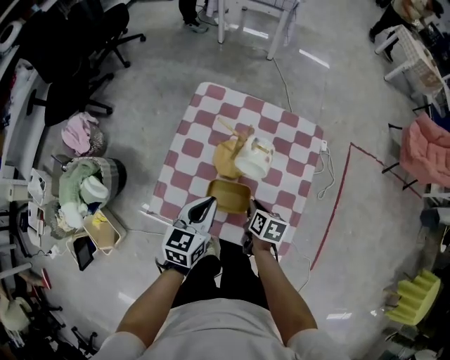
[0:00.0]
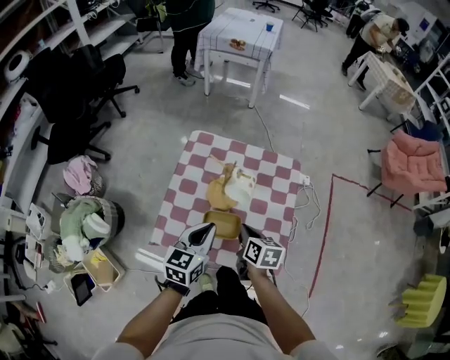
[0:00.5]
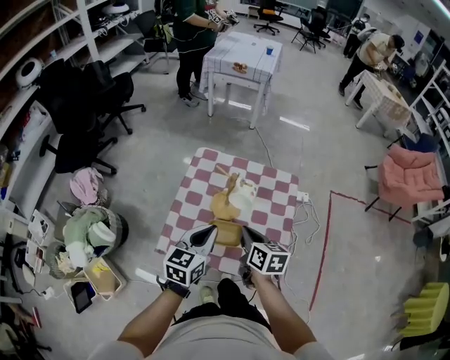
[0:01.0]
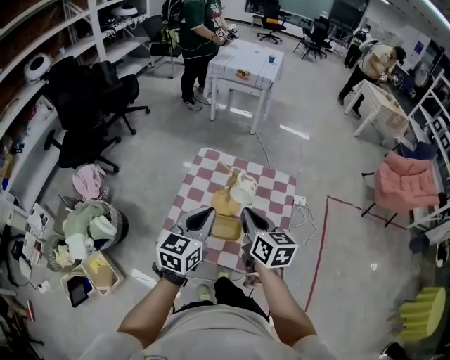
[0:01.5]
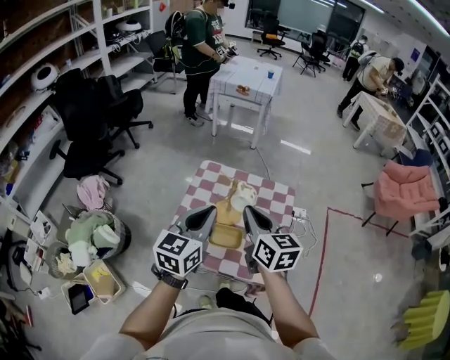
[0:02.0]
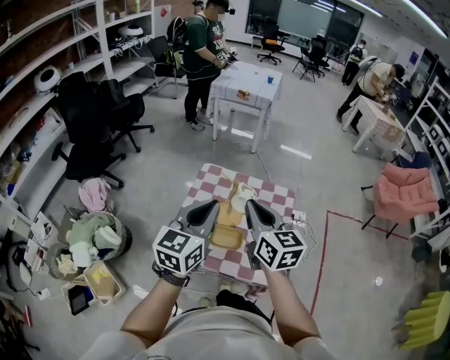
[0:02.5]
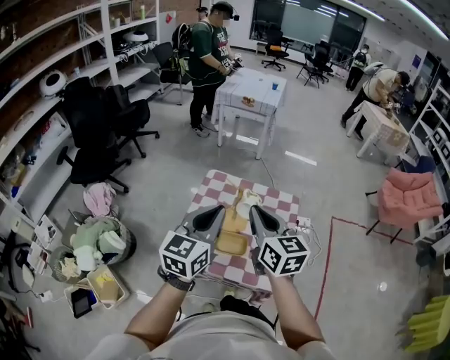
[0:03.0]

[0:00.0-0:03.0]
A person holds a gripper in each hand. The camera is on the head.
0:00.0 to 0:01.5: The left gripper shifts approximately 20 cm upward, while the right gripper shifts about 35 cm upward, and angles its fingers upward, by about 30 degrees.
0:01.5 to 0:03.0: The grippers both shift upward by roughly 10 cm.

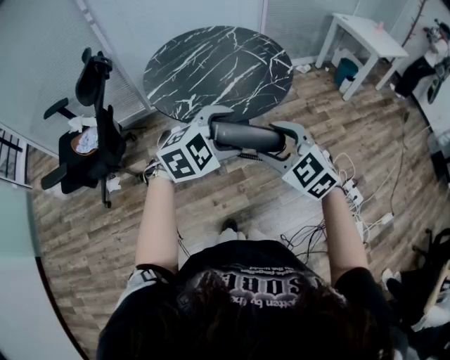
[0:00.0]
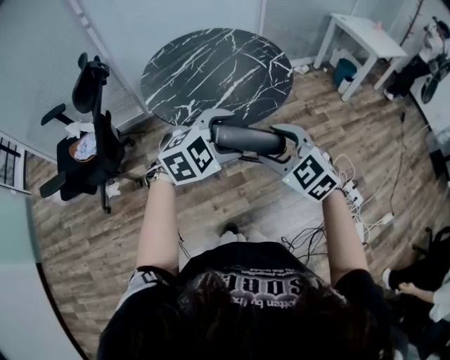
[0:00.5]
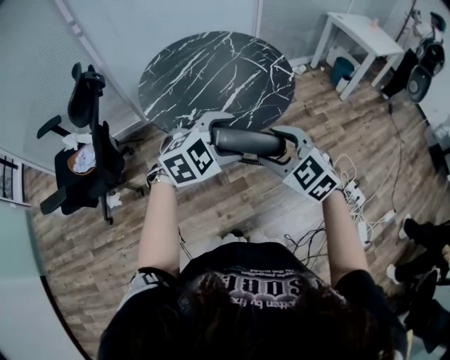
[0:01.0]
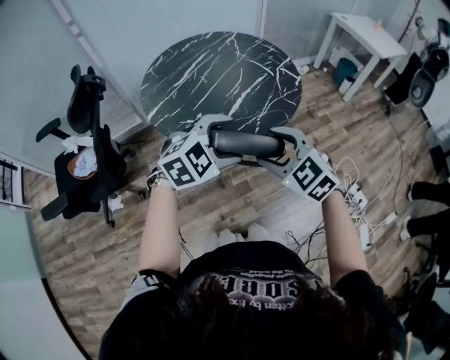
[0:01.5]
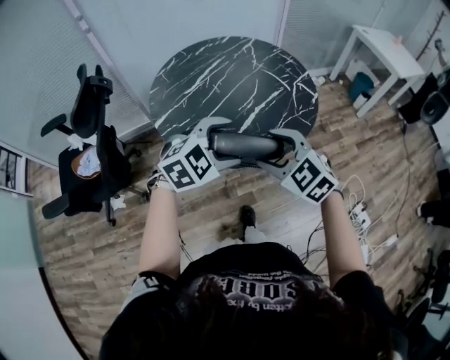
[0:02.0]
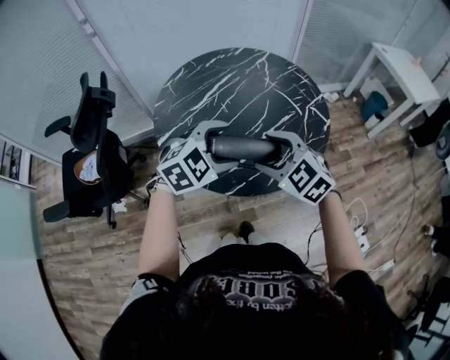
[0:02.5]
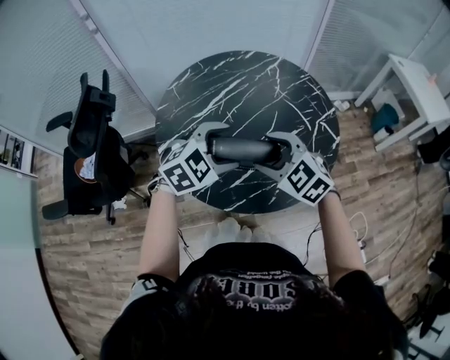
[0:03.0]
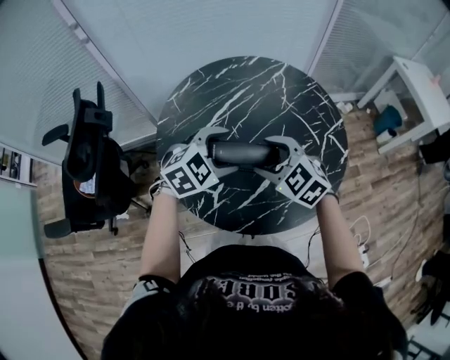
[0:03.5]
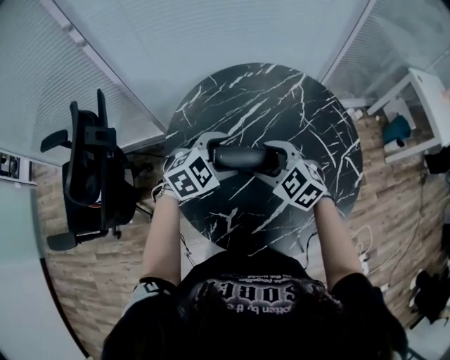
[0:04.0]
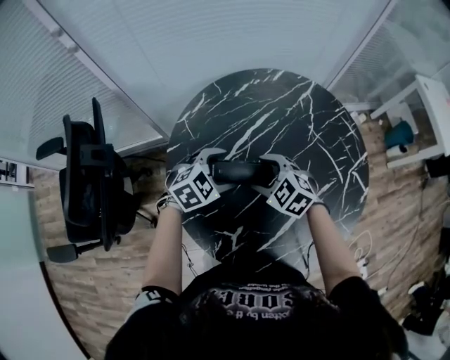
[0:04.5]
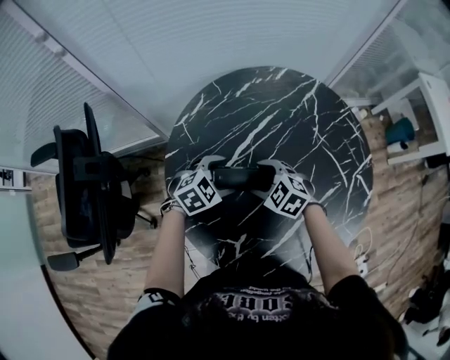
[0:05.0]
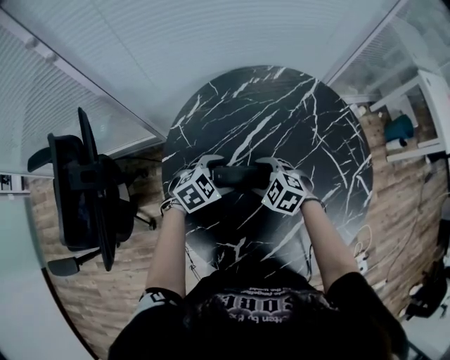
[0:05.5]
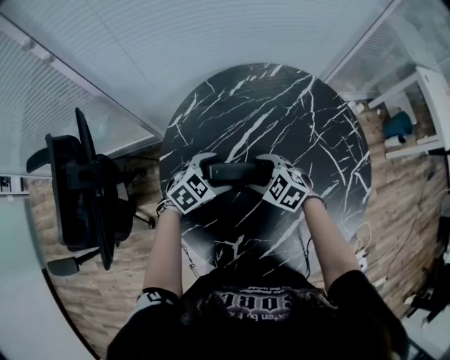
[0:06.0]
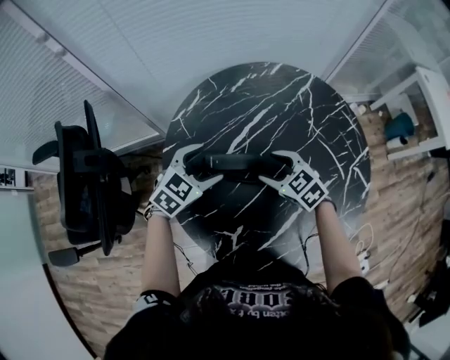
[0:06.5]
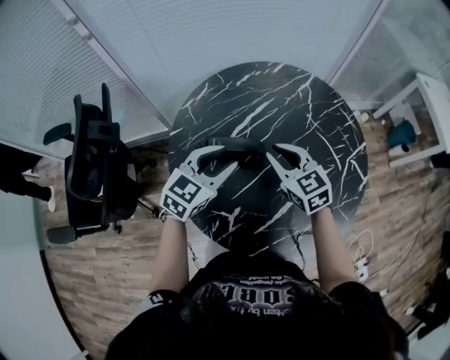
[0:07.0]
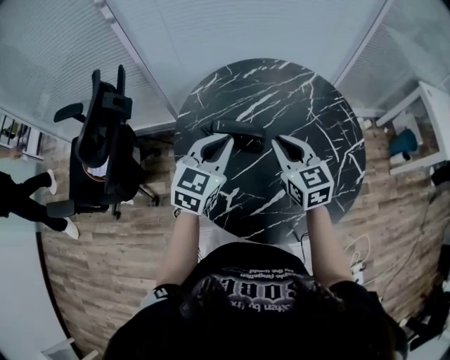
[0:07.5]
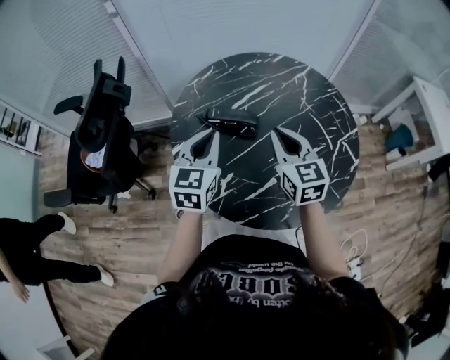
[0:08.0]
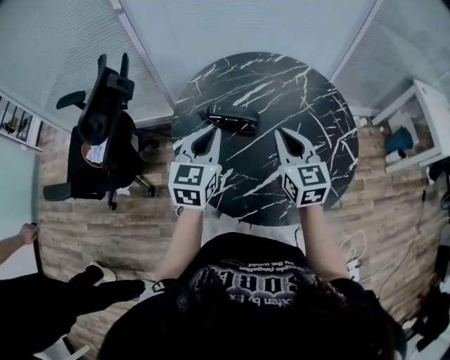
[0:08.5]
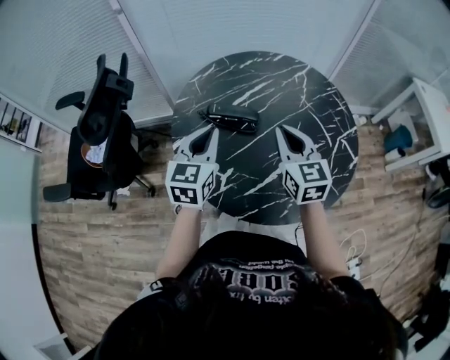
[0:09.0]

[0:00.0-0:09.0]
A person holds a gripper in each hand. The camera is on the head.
0:00.0 to 0:02.0: Both grippers move forward and to the left, about 20 cm.
0:02.0 to 0:04.5: The left gripper travels forward, downward and to the left by roughly 40 cm, and rotates roughly 20 degrees. Meanwhile the right gripper travels forward and downward by some 40 cm.
0:04.5 to 0:07.0: The grippers both shift upward by roughly 10 cm. The left gripper swivels some 30 degrees, and closes. The right gripper turns by roughly 30 degrees, and closes its fingers.
0:07.0 to 0:09.0: The left gripper heads backward, covering some 10 cm, changes its angle by approximately 30 degrees, and closes. The right gripper shifts about 10 cm backward and upward.

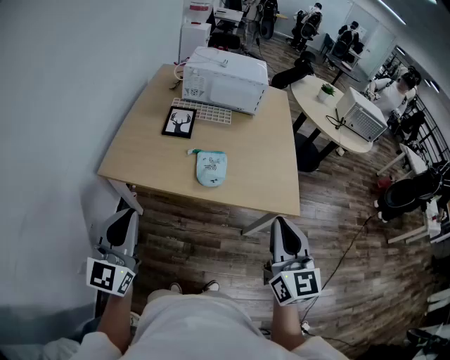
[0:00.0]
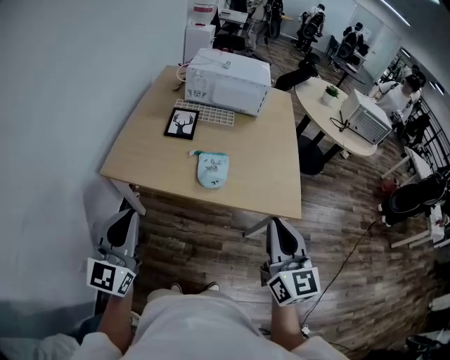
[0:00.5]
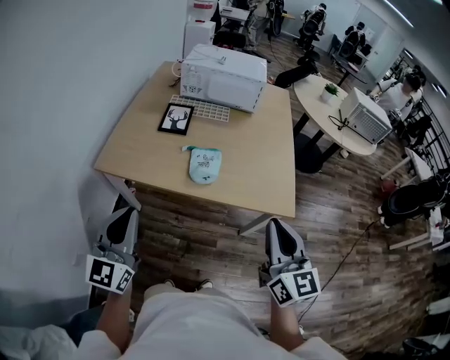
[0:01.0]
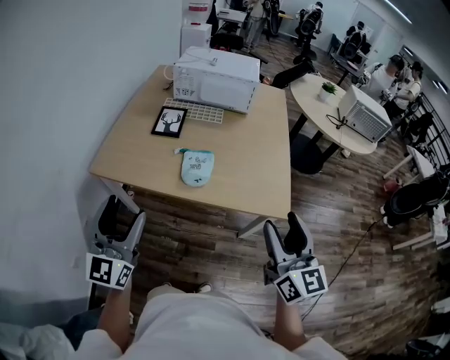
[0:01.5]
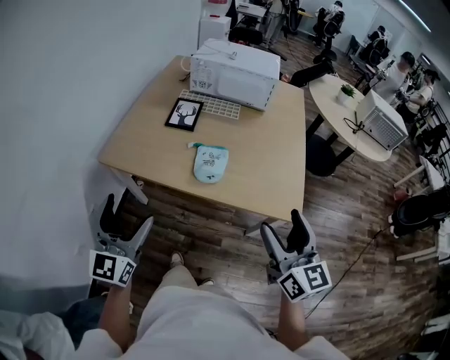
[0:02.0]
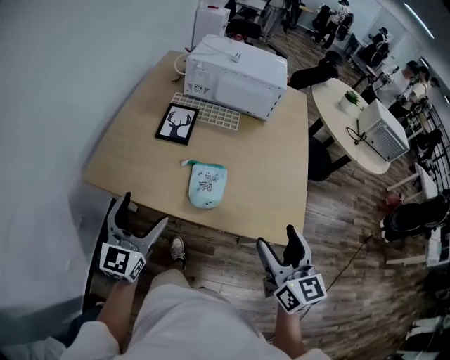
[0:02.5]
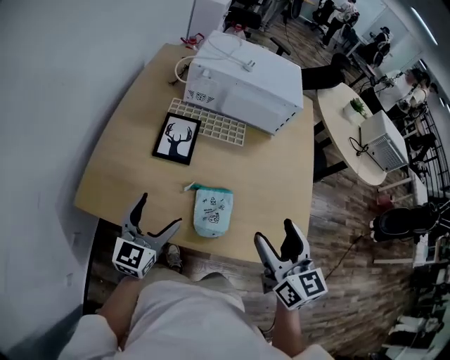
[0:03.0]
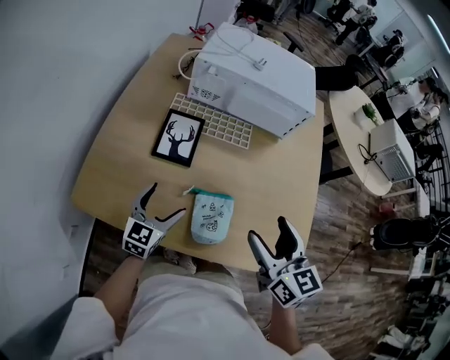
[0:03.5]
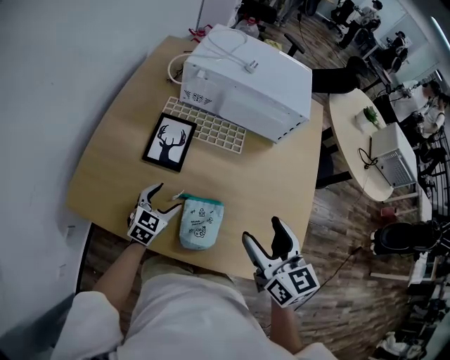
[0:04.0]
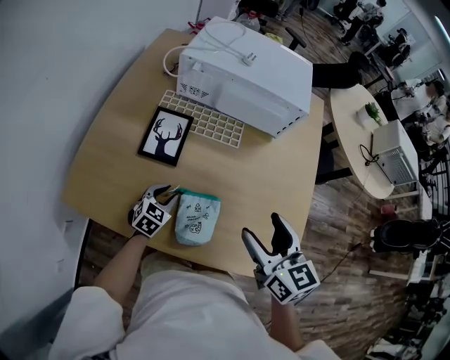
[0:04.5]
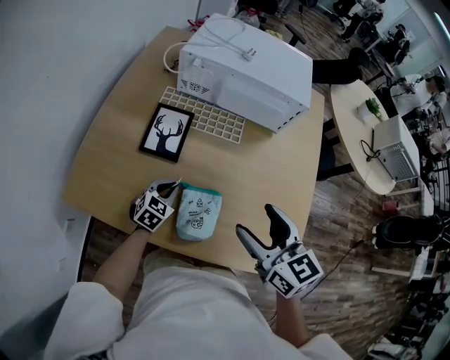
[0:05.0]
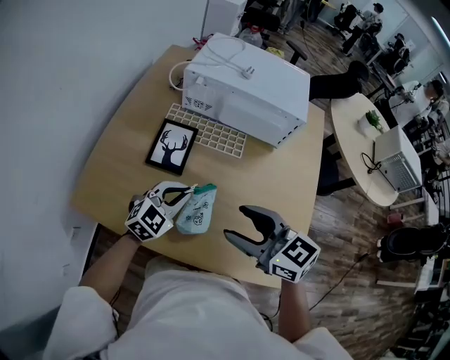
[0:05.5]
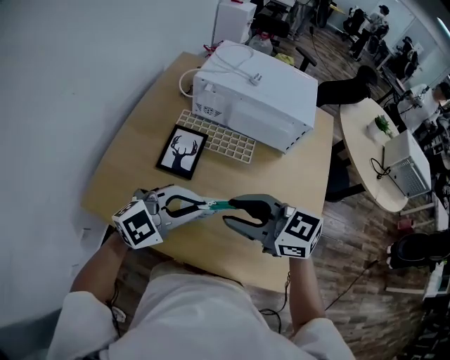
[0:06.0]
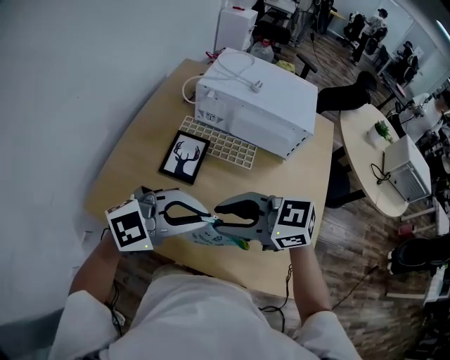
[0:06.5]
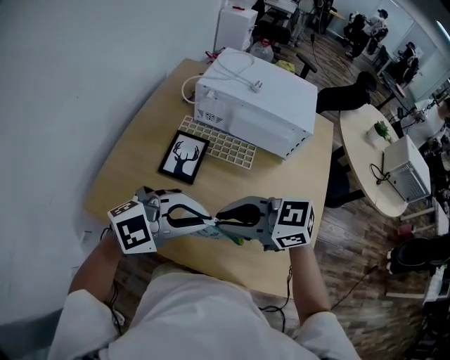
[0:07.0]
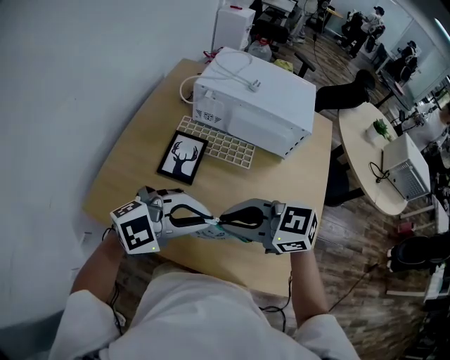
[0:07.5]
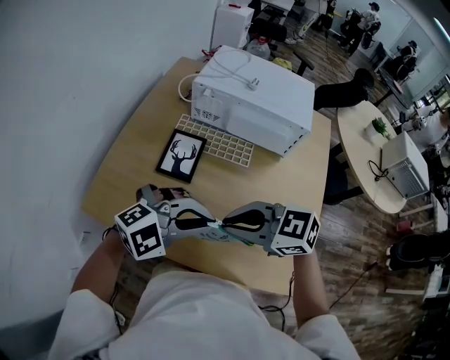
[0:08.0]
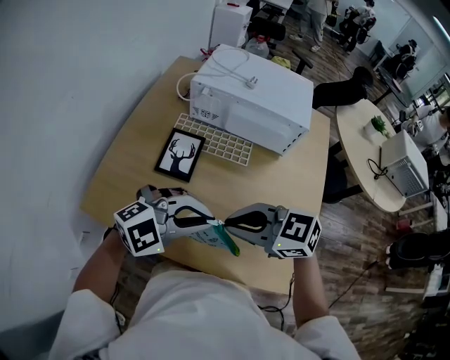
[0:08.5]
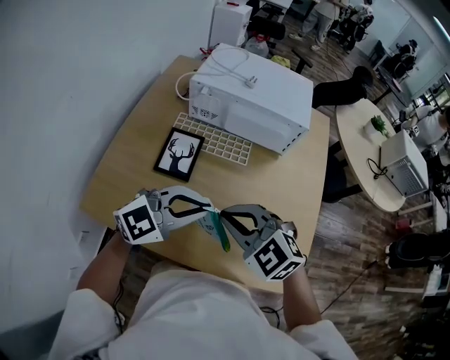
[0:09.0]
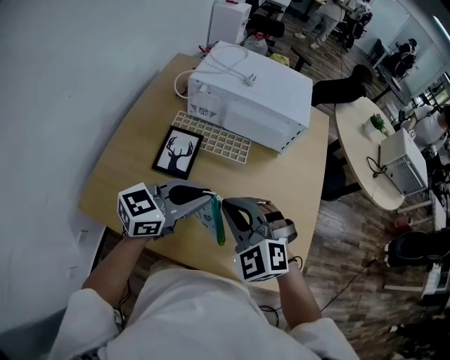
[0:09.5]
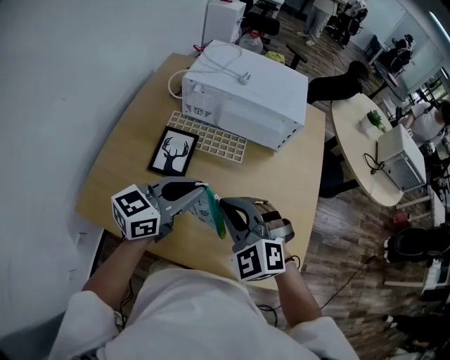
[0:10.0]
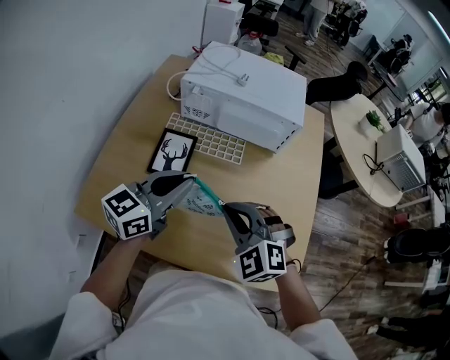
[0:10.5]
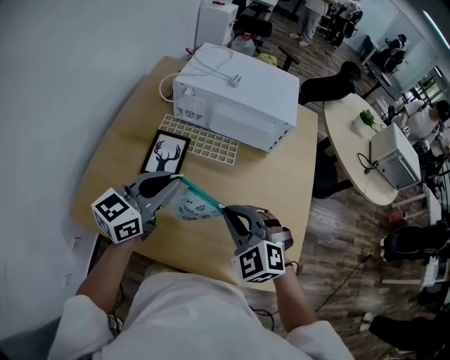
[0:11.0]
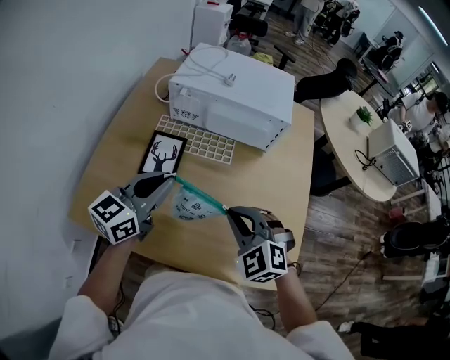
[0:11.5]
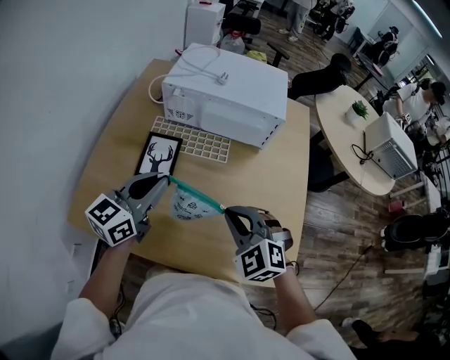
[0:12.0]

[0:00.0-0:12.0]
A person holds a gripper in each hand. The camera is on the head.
0:00.0 to 0:02.0: Both grippers move to the right, some 5 cm. The right gripper opens. Meanwhile the left gripper opens its fingers.
0:02.0 to 0:04.0: The left gripper goes about 50 cm forward and downward, and points its fingers some 40 degrees further downward; the right gripper shifts roughly 35 cm forward.
0:04.0 to 0:06.0: The left gripper shifts some 25 cm upward, swivels roughly 40 degrees, and closes its fingers. Meanwhile the right gripper ends up approximately 10 cm from where it was, turns by some 50 degrees, and closes up.
0:06.0 to 0:08.0: The left gripper changes its angle by some 20 degrees.
0:08.0 to 0:10.0: The right gripper shifts by roughly 5 cm, and turns by approximately 60 degrees, while the left gripper changes place by approximately 10 cm, and twists roughly 60 degrees counterclockwise, seen from behind.
0:10.0 to 0:12.0: The right gripper shifts roughly 5 cm to the right, while the left gripper is displaced to the left by about 5 cm.

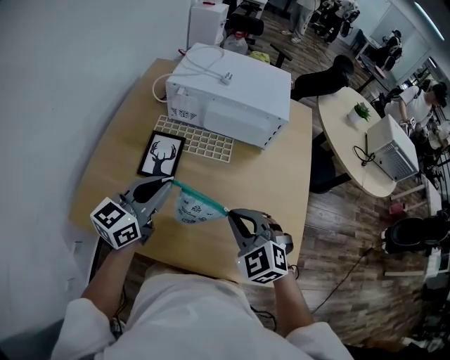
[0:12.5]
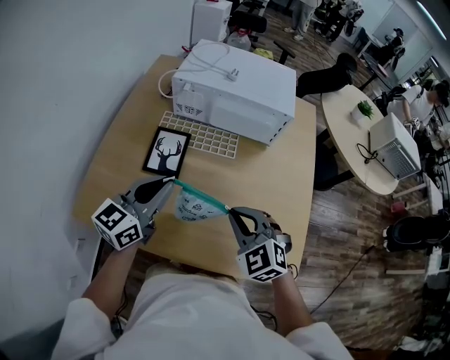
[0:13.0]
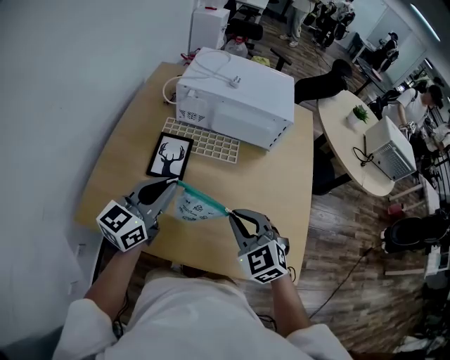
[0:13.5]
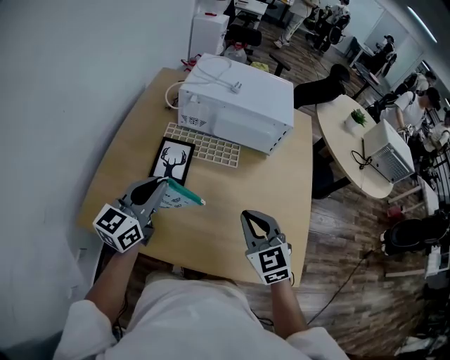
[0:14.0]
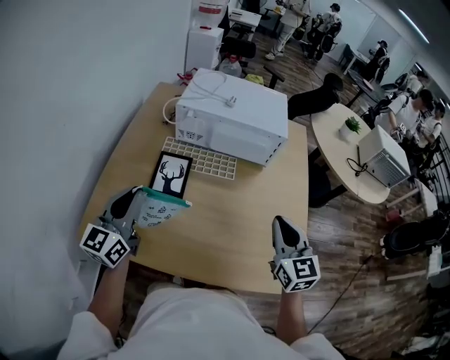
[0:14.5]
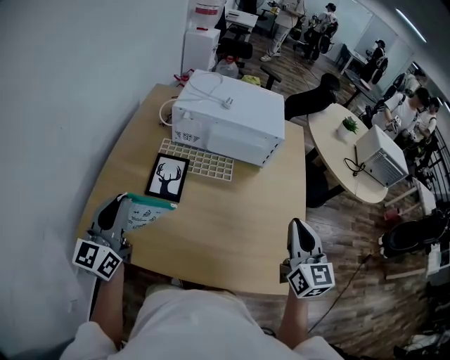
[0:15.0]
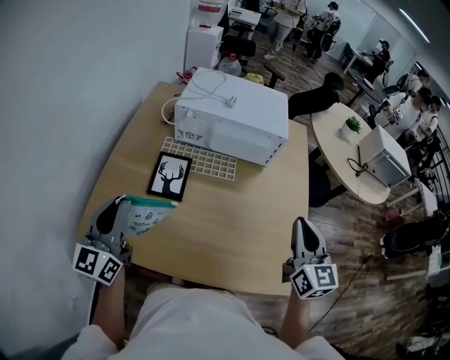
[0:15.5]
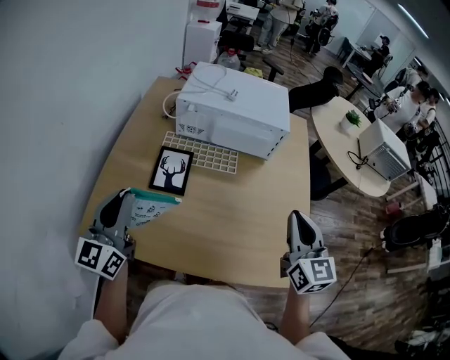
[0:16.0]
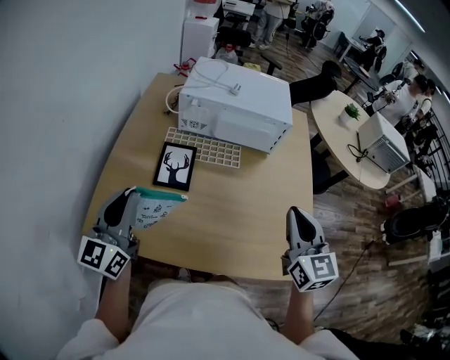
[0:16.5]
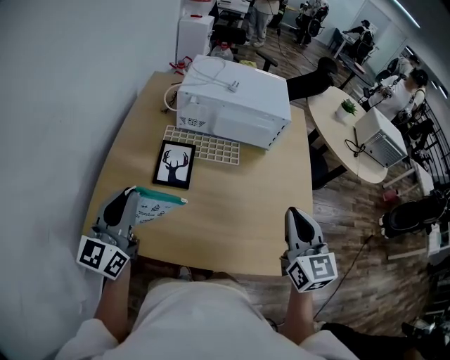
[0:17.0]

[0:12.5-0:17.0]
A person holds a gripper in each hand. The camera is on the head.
0:12.5 to 0:14.5: The right gripper moves to the right and upward, roughly 10 cm, and turns by approximately 50 degrees. Meanwhile the left gripper moves to the left, approximately 15 cm.
0:14.5 to 0:17.0: The right gripper moves some 5 cm, while the left gripper shifts by approximately 5 cm.
